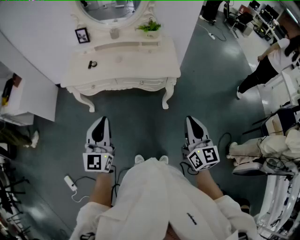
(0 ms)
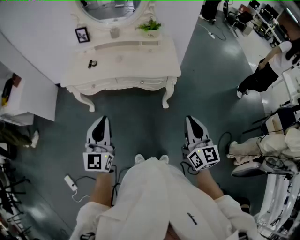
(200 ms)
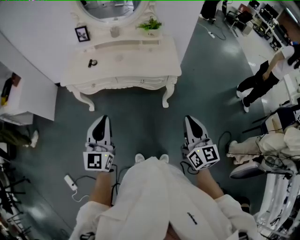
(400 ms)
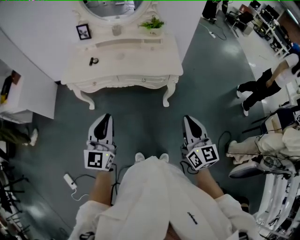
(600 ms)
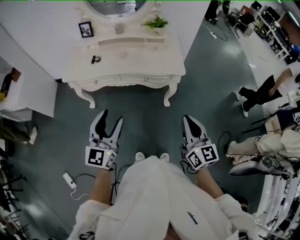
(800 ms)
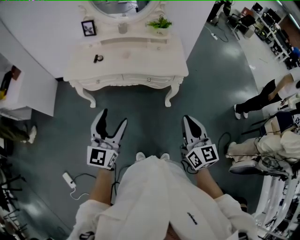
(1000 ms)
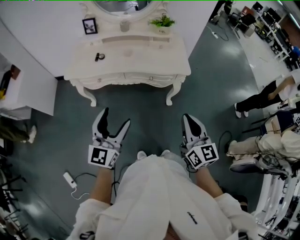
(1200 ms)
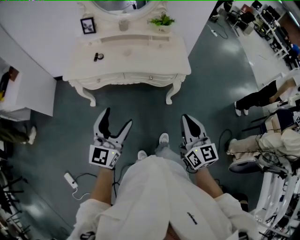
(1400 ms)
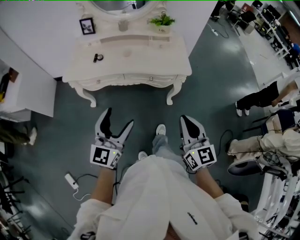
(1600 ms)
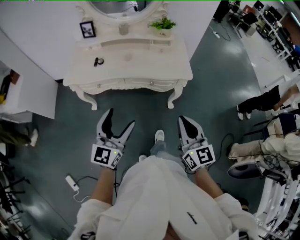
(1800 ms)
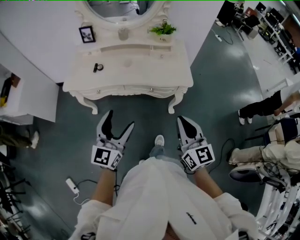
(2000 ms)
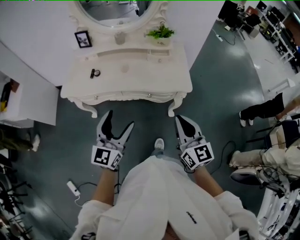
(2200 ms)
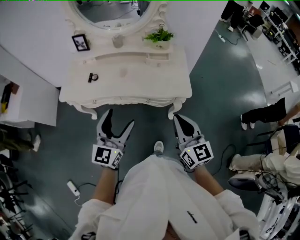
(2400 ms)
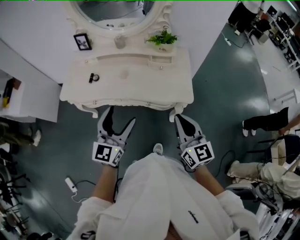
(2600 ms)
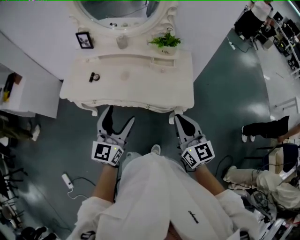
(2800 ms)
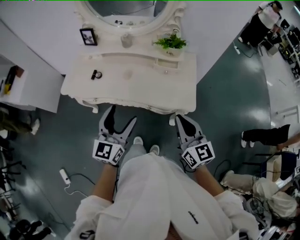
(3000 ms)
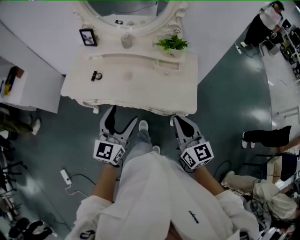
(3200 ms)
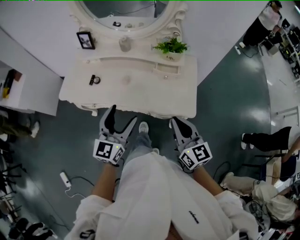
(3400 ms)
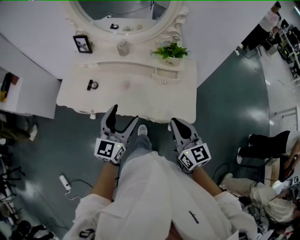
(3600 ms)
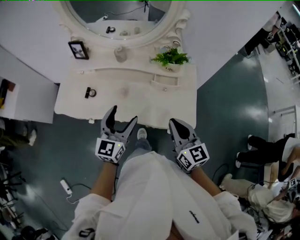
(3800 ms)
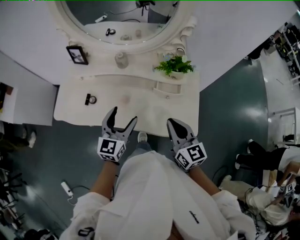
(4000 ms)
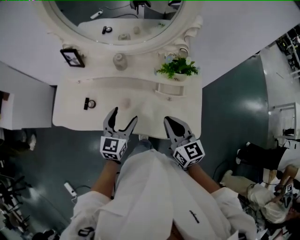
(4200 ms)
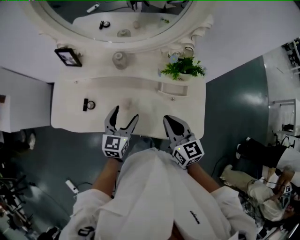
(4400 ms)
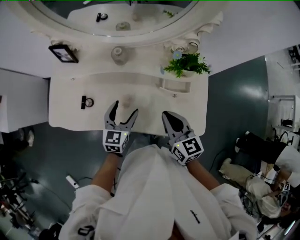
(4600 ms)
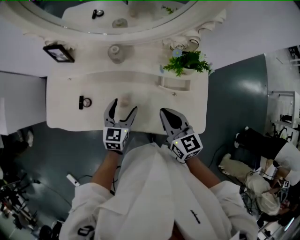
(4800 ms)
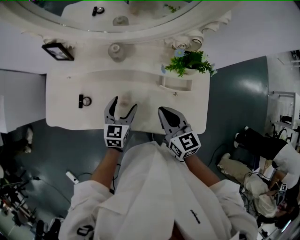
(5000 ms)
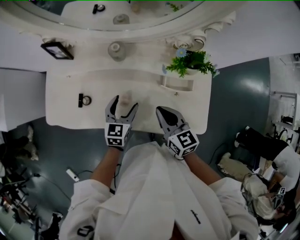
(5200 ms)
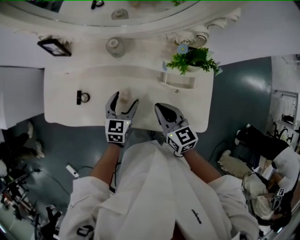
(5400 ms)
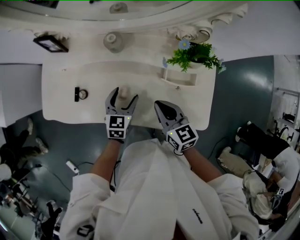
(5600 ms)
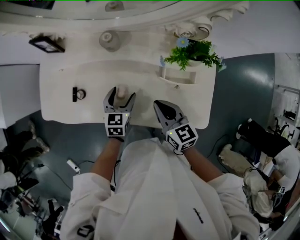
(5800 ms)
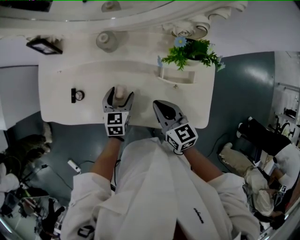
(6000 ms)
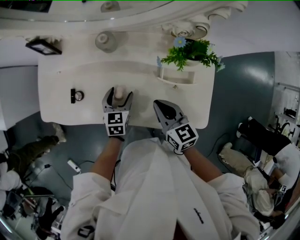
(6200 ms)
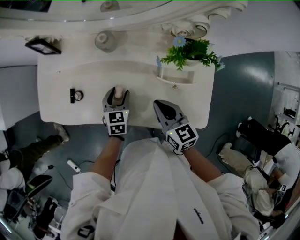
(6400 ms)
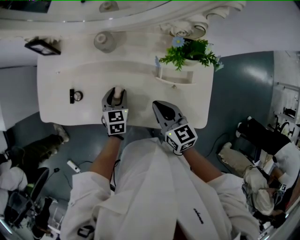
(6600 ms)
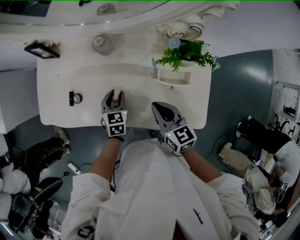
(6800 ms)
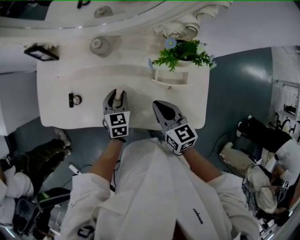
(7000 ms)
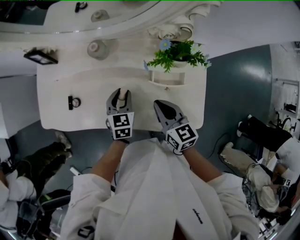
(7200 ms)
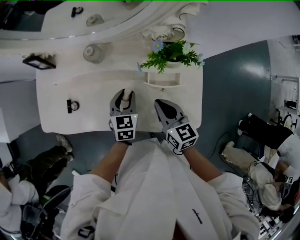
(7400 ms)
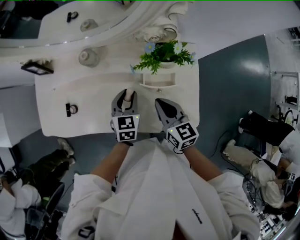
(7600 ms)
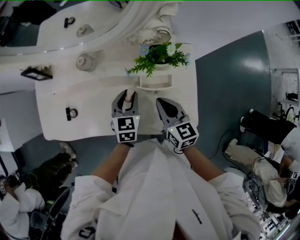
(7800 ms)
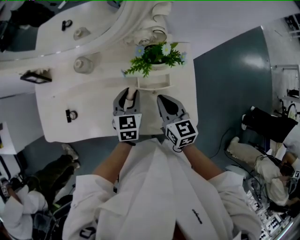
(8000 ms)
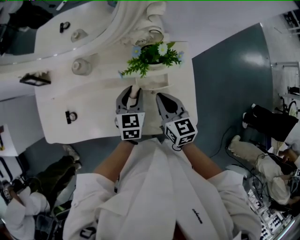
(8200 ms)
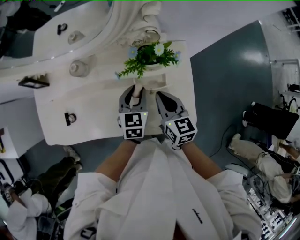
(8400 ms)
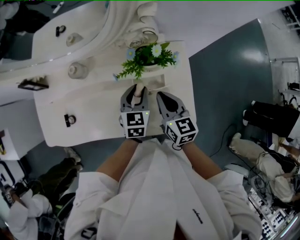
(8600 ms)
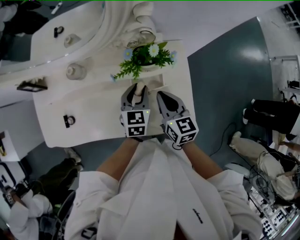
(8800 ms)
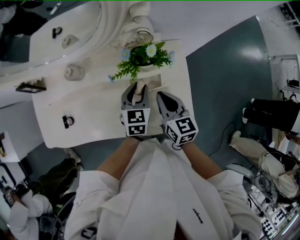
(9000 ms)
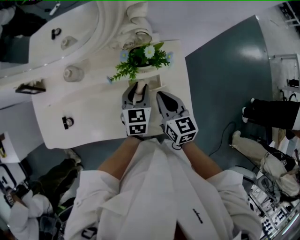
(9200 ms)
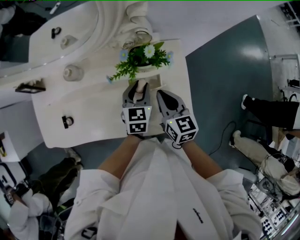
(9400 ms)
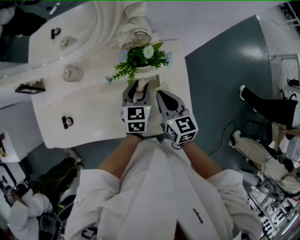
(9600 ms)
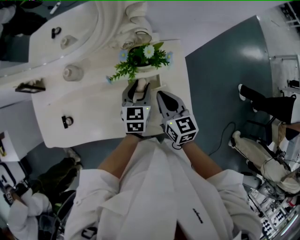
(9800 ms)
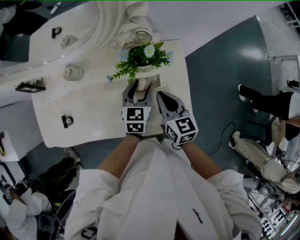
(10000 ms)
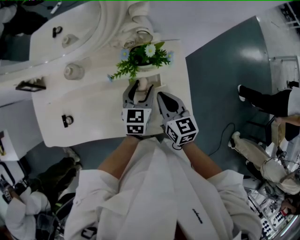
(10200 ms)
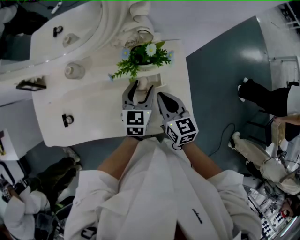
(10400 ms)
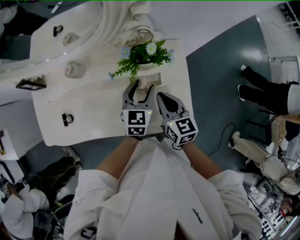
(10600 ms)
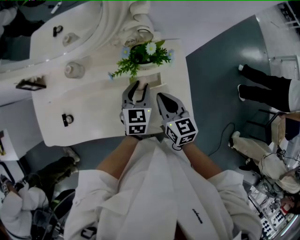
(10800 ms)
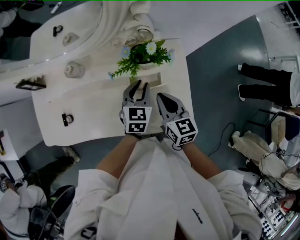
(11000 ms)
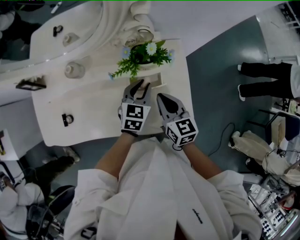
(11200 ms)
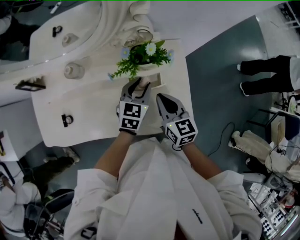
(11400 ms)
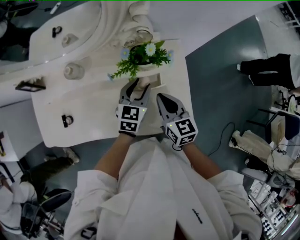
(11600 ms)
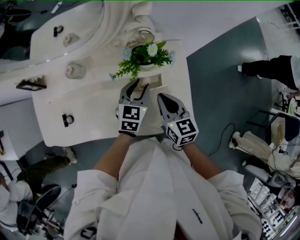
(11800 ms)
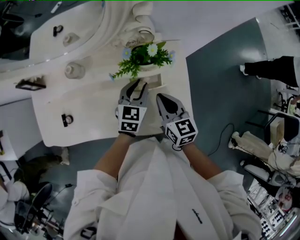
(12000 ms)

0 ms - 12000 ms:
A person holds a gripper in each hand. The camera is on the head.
0 ms - 1600 ms: The left gripper moves roughly 5 cm, and opens its fingers, while the right gripper travels to the left by some 10 cm.
1600 ms - 3000 ms: The right gripper moves forward, roughly 25 cm. Meanwhile the left gripper heads forward and to the right, covering roughly 25 cm.
3000 ms - 4400 ms: The left gripper is displaced forward and downward by roughly 35 cm. The right gripper heads forward, covering roughly 30 cm.
4400 ms - 6000 ms: Both grippers travel together downward, some 10 cm. The left gripper changes its angle by roughly 20 degrees.
6000 ms - 7600 ms: The right gripper goes some 10 cm to the right. The left gripper moves to the right and upward, about 15 cm, and closes.
7600 ms - 9000 ms: The right gripper goes some 10 cm to the right. Meanwhile the left gripper goes approximately 10 cm to the right.
9000 ms - 12000 ms: The grippers stay close to where they were, moving slightly.

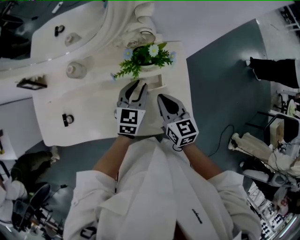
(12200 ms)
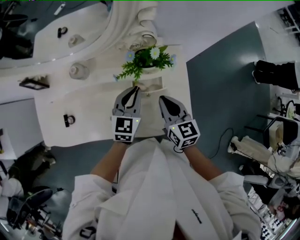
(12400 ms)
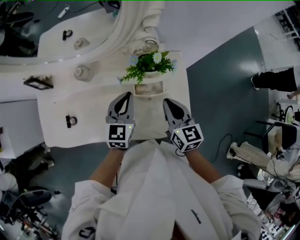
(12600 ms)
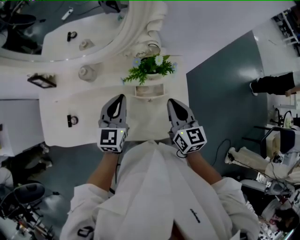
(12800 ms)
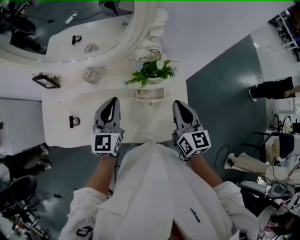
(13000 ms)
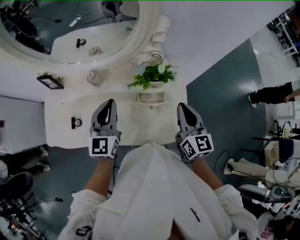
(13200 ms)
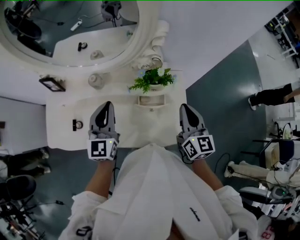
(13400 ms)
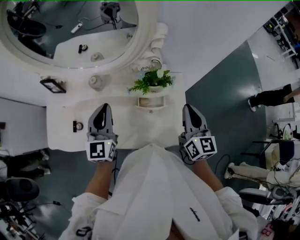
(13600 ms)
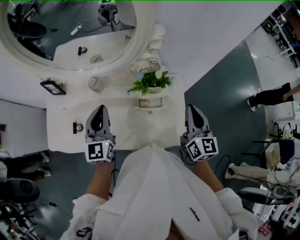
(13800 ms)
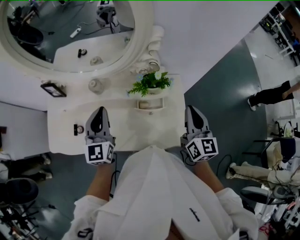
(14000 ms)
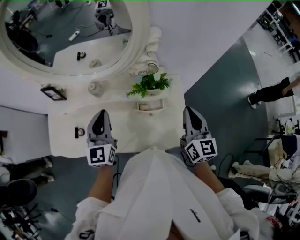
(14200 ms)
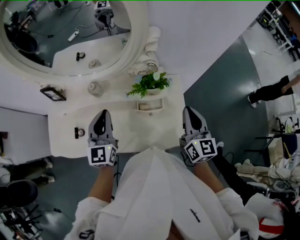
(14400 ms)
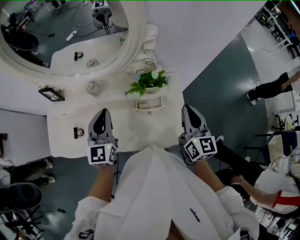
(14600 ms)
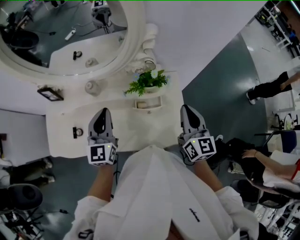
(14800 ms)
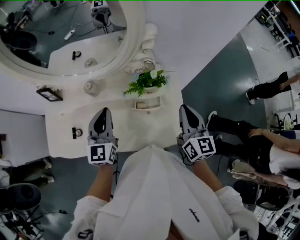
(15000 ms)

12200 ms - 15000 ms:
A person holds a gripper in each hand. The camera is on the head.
12200 ms - 13600 ms: The left gripper heads upward and to the left, covering some 25 cm, and swivels some 30 degrees. Meanwhile the right gripper goes approximately 15 cm upward and to the right, and turns by about 20 degrees.
13600 ms - 15000 ms: There are only small adjustments of the grippers.

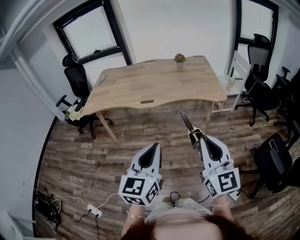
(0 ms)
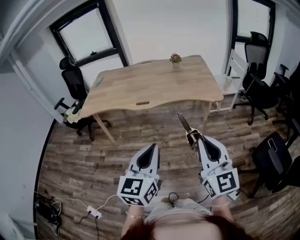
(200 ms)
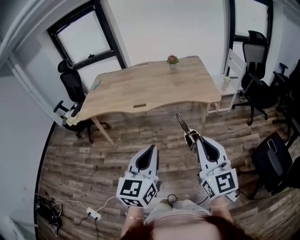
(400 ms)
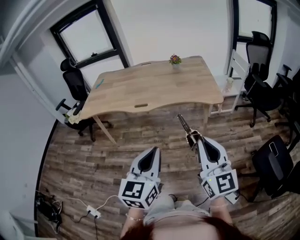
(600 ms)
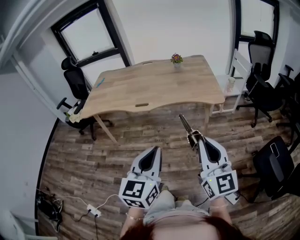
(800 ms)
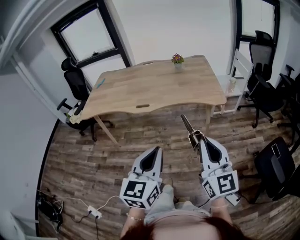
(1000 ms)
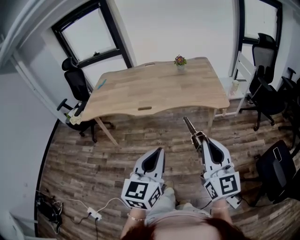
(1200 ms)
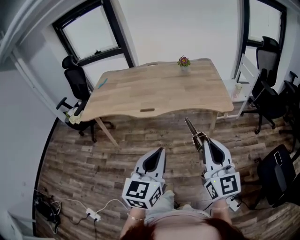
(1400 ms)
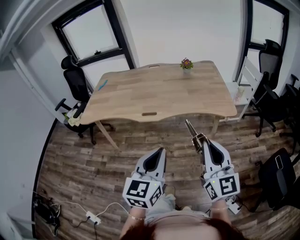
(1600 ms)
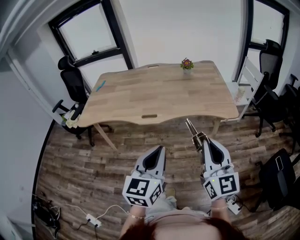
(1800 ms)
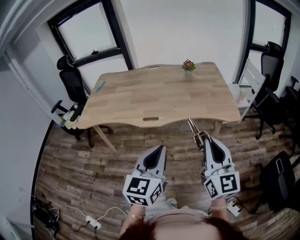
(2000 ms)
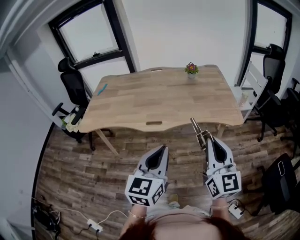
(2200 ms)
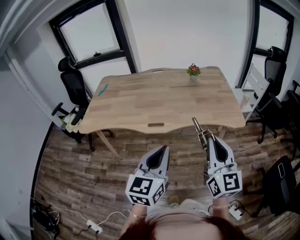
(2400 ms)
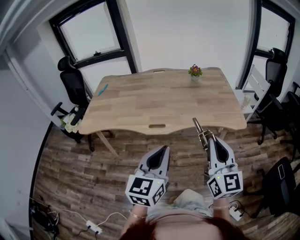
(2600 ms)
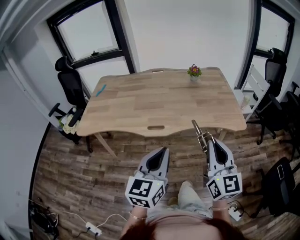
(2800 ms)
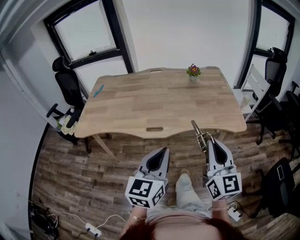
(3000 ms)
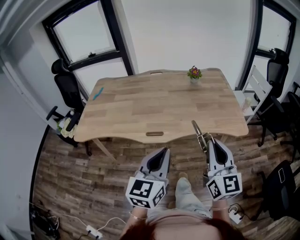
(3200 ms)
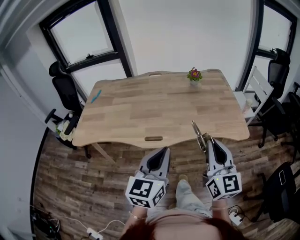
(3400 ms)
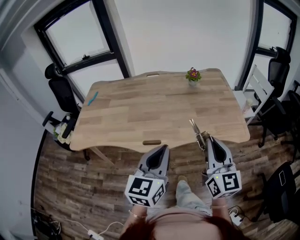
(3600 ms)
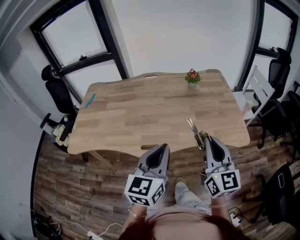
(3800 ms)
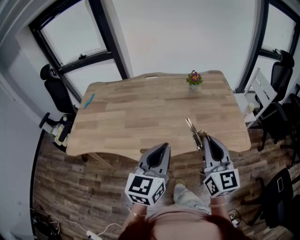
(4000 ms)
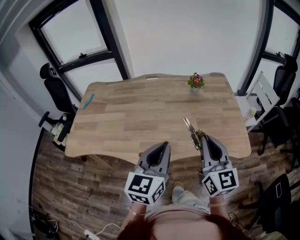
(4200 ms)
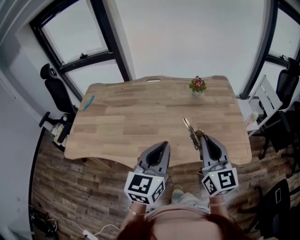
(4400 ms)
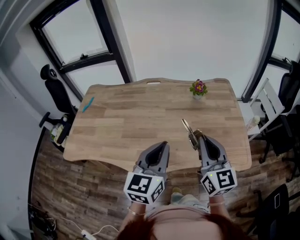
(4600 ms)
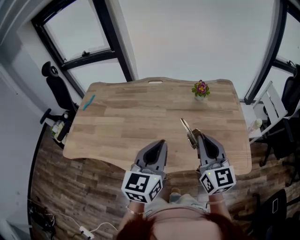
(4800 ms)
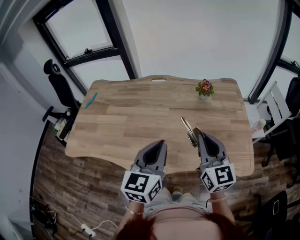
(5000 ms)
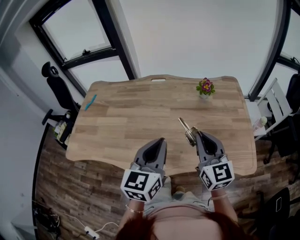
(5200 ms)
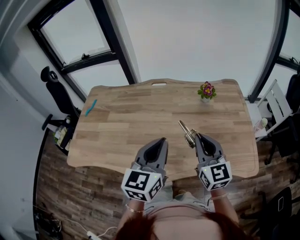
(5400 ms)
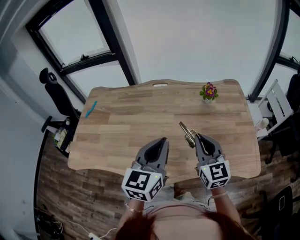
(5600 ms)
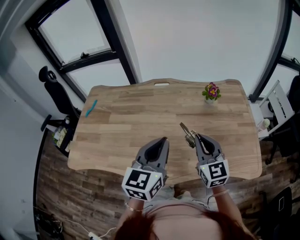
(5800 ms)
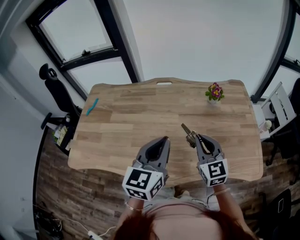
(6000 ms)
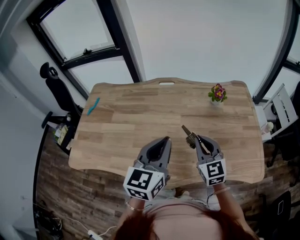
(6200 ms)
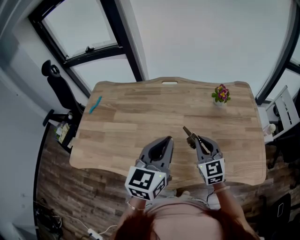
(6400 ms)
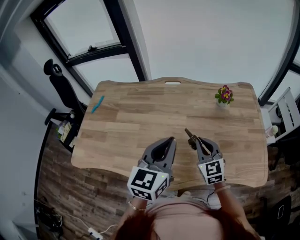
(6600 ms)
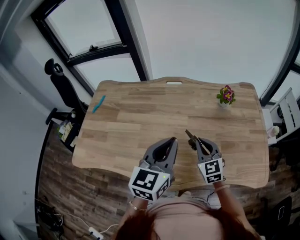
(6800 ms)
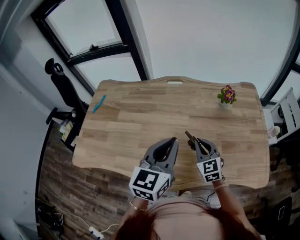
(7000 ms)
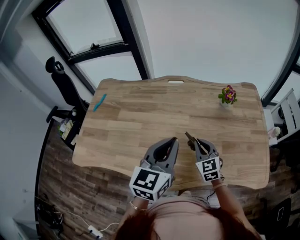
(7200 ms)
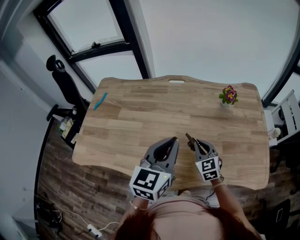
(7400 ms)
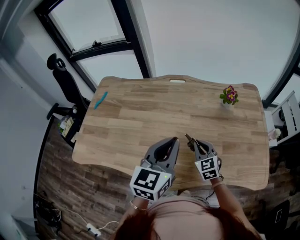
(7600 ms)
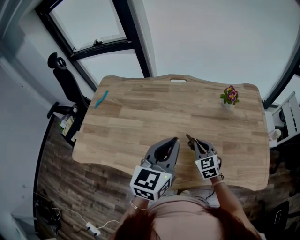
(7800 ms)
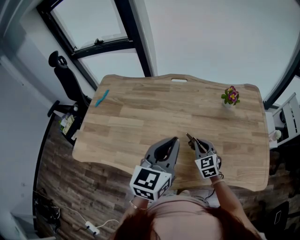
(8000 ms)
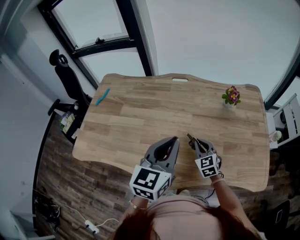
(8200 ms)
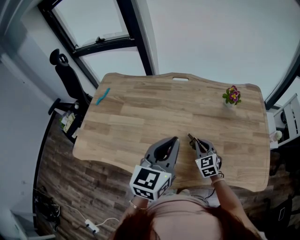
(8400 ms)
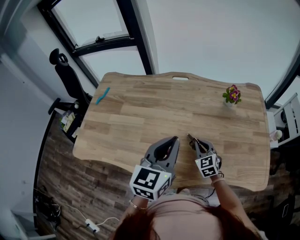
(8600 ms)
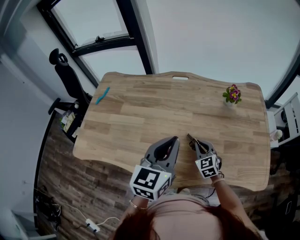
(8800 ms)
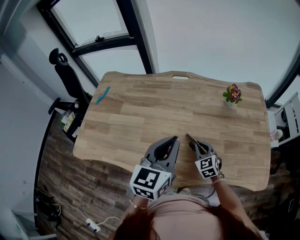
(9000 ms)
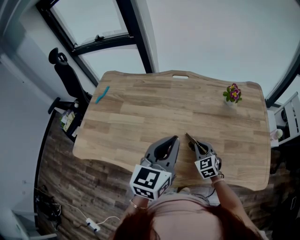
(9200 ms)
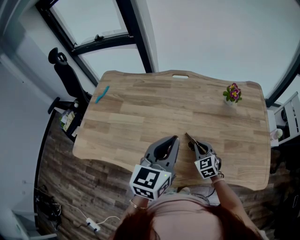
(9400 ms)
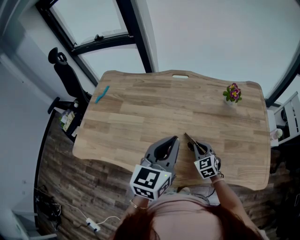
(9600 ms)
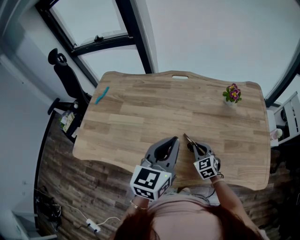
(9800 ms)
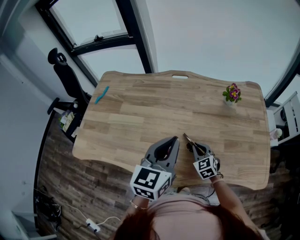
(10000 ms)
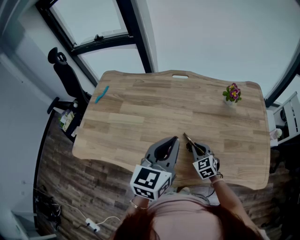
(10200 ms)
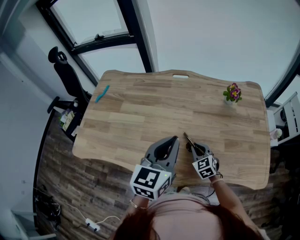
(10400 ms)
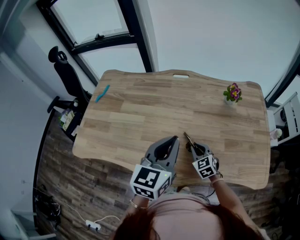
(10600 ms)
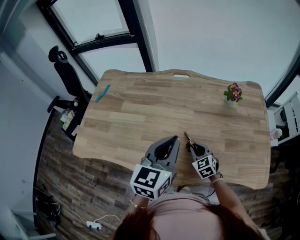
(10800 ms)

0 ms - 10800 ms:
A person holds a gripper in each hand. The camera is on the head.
0 ms - 1600 ms: Both grippers travel together forward, approximately 15 cm.
1600 ms - 3000 ms: Both grippers move forward and to the left, roughly 15 cm.
3000 ms - 4600 ms: Both grippers move forward, about 30 cm.
4600 ms - 6200 ms: The left gripper heads forward and to the left, covering some 15 cm, while the right gripper shifts about 20 cm forward, downward and to the left, and swivels roughly 20 degrees.
6200 ms - 7800 ms: The right gripper heads downward, covering about 15 cm.
7800 ms - 9200 ms: The grippers move only a little.
9200 ms - 10800 ms: The grippers make only small movements.
